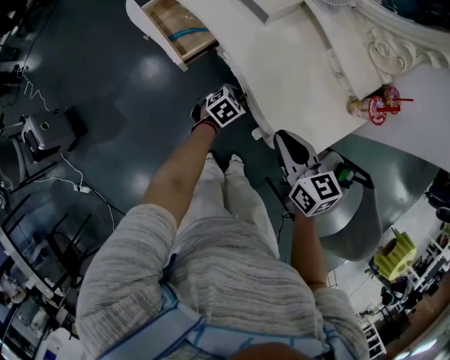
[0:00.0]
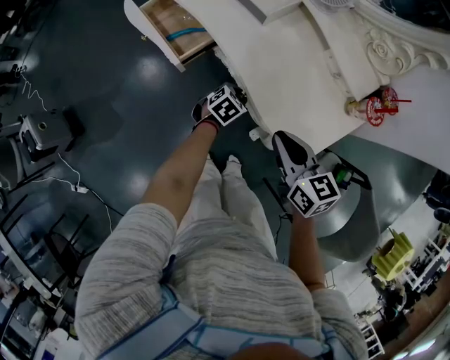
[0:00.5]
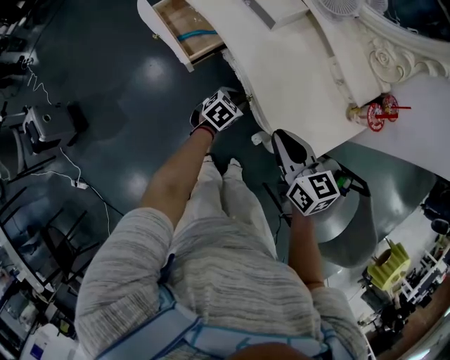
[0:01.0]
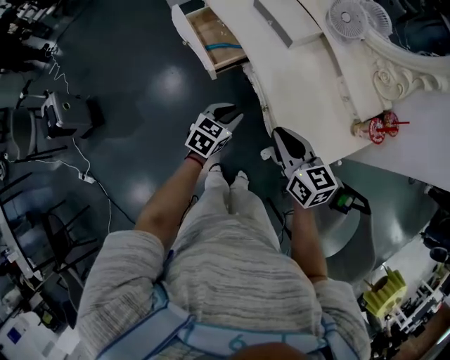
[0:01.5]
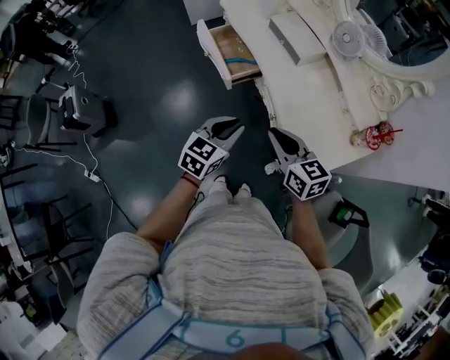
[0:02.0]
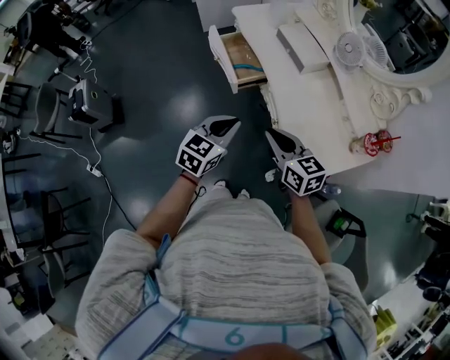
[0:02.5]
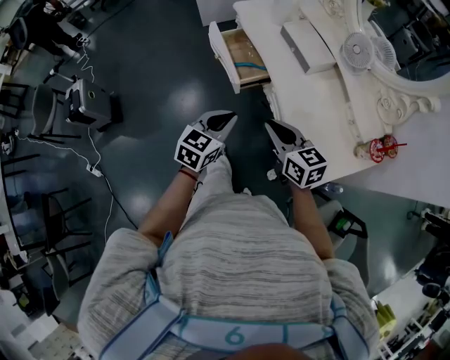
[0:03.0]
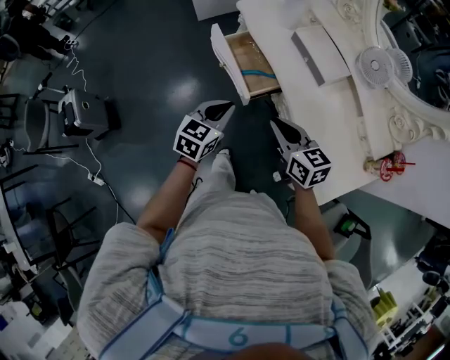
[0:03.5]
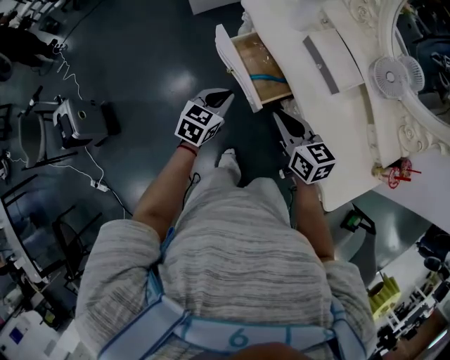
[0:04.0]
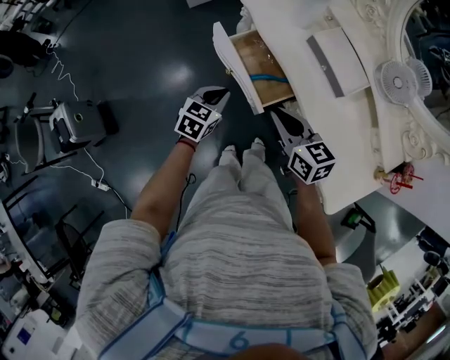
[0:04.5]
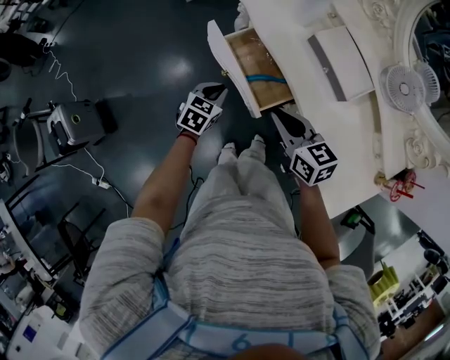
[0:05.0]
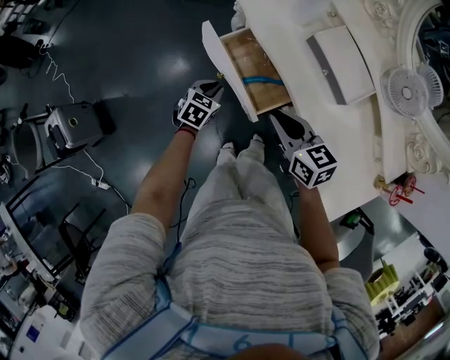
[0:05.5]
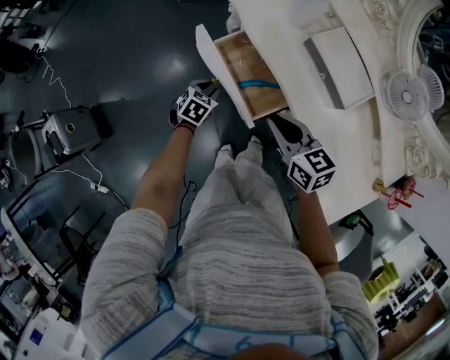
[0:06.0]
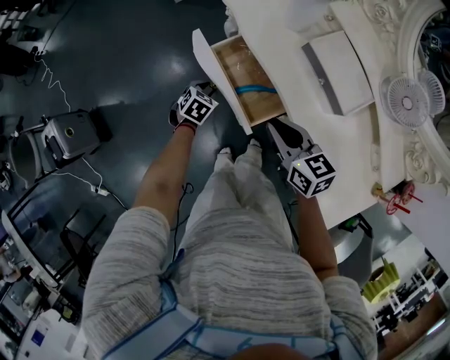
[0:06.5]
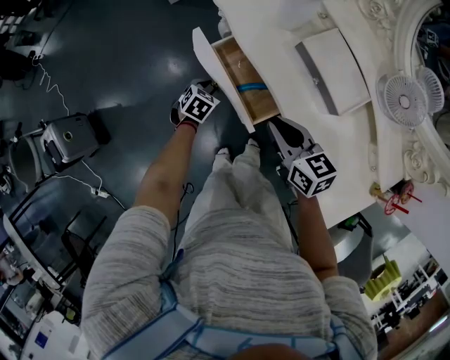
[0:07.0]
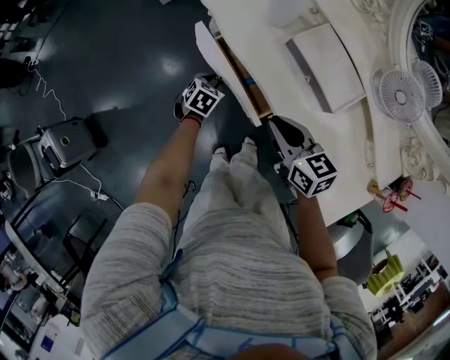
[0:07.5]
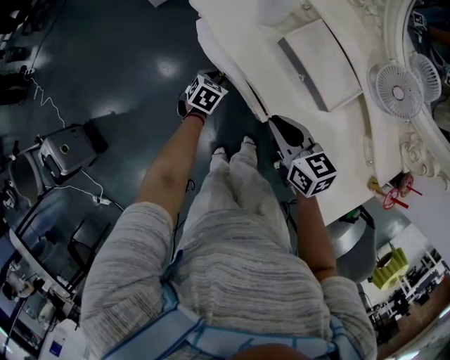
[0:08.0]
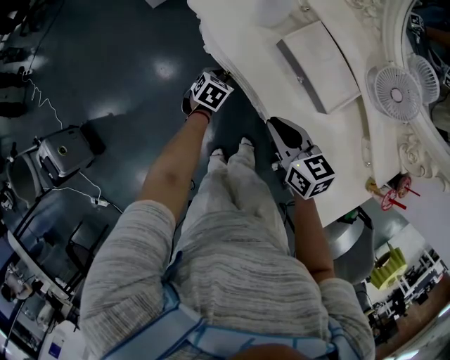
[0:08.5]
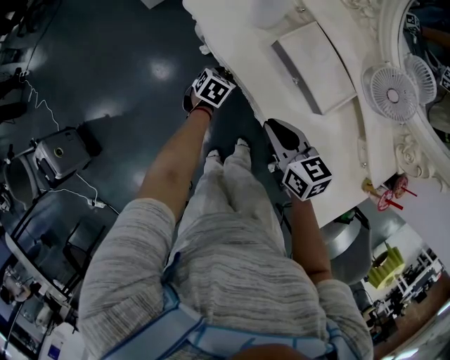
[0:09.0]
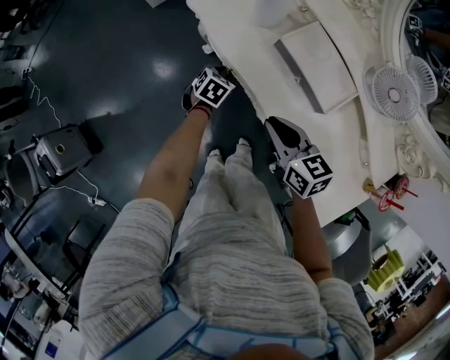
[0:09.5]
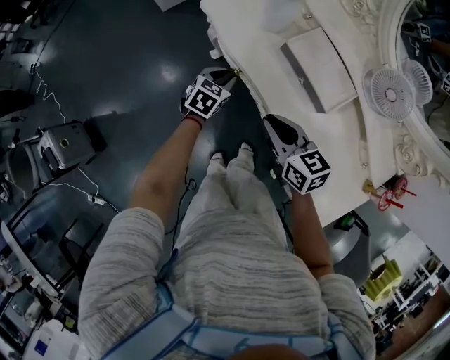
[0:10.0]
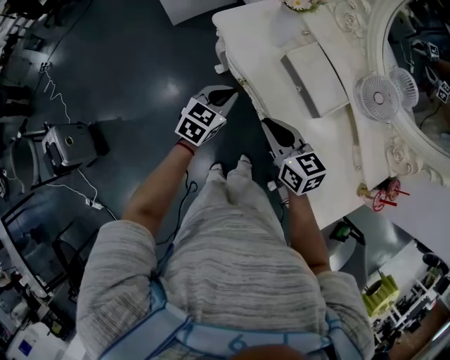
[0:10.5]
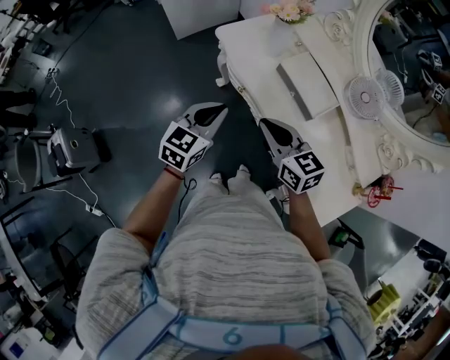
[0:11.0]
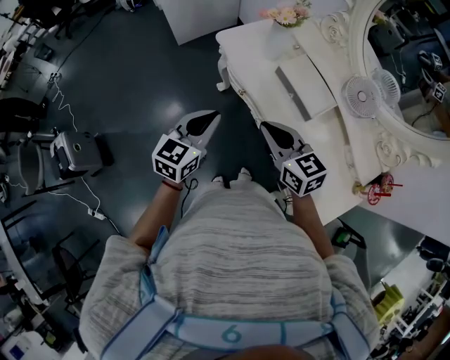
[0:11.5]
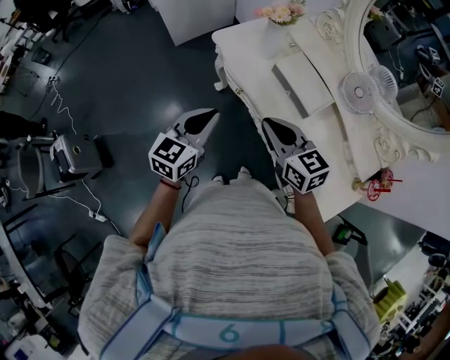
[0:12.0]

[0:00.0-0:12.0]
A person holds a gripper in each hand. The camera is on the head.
0:00.0 to 0:02.0: The right gripper travels to the left and upward by approximately 10 cm. The left gripper goes about 30 cm upward and backward, and turns by roughly 40 degrees.
0:02.0 to 0:04.0: Both grippers travel together forward and to the left, approximately 30 cm.
0:04.0 to 0:06.0: The right gripper is displaced forward and downward by about 10 cm. The left gripper moves downward and forward, some 25 cm, rotates about 30 degrees, and opens.
0:06.0 to 0:08.0: The right gripper heads to the right, covering about 5 cm. Meanwhile the left gripper travels to the right and forward by roughly 15 cm.
0:08.0 to 0:10.0: The left gripper moves upward, about 10 cm.
0:10.0 to 0:12.0: The right gripper is displaced upward by about 15 cm. The left gripper shifts roughly 30 cm upward and backward, rotates about 30 degrees, and closes its fingers.

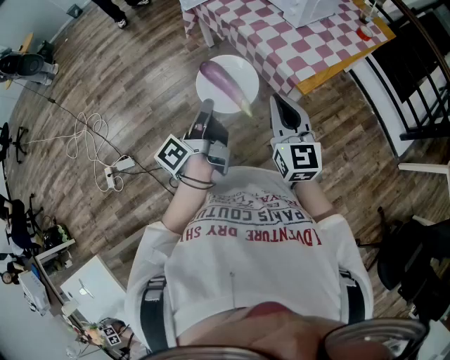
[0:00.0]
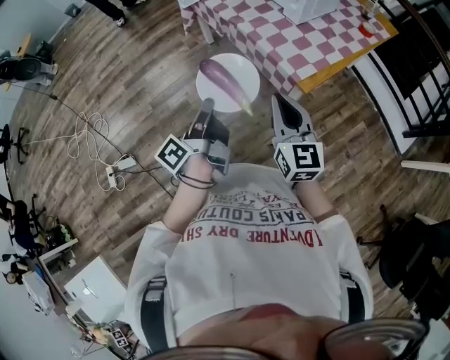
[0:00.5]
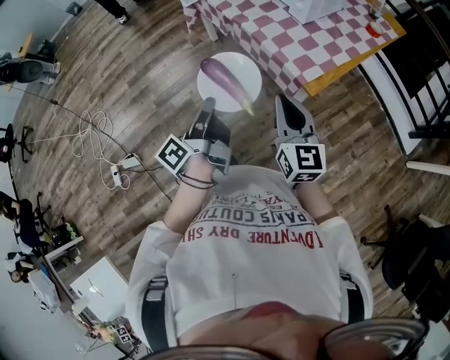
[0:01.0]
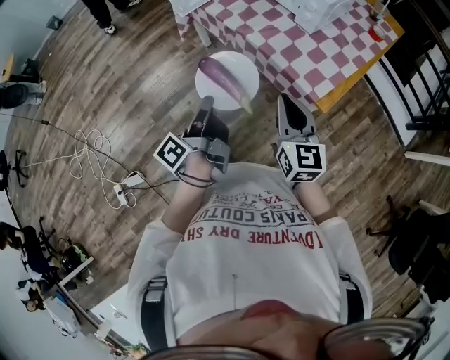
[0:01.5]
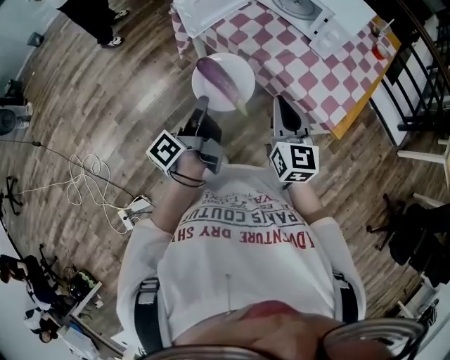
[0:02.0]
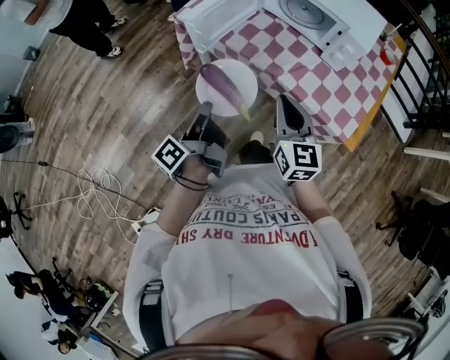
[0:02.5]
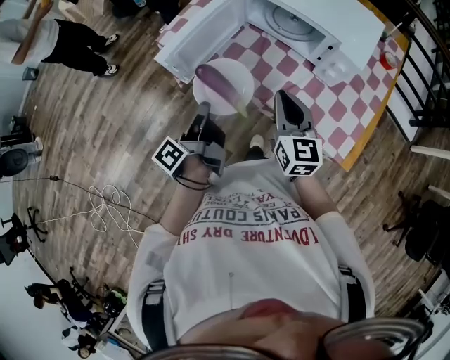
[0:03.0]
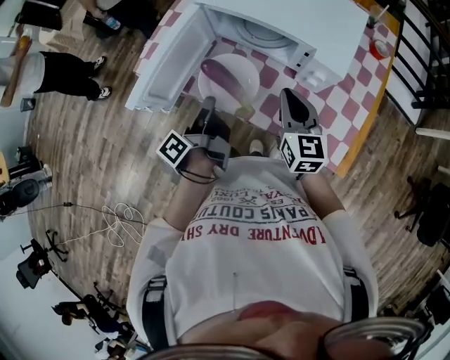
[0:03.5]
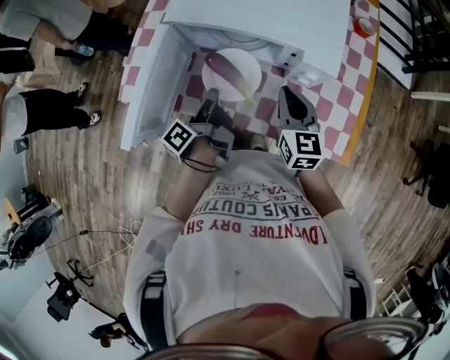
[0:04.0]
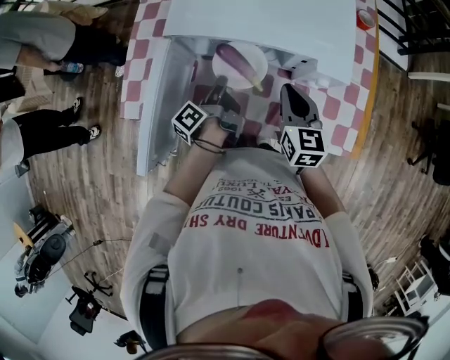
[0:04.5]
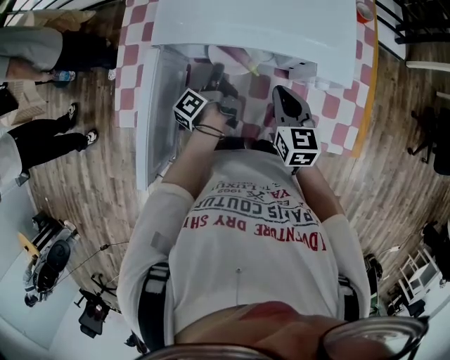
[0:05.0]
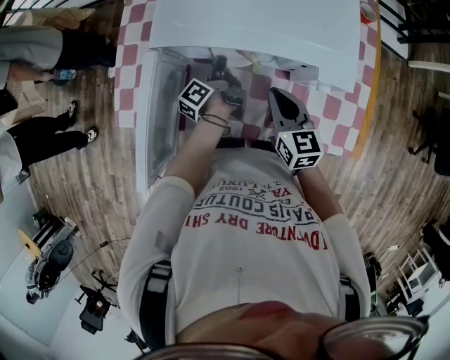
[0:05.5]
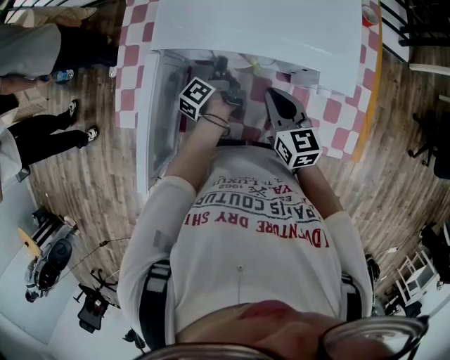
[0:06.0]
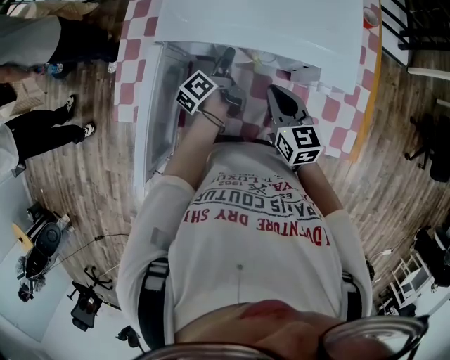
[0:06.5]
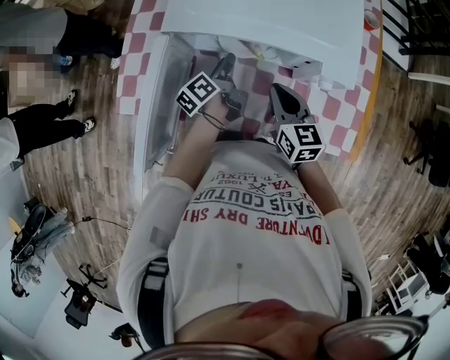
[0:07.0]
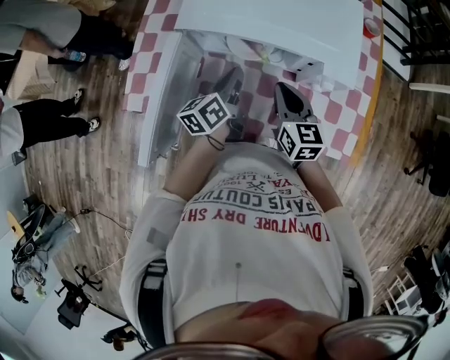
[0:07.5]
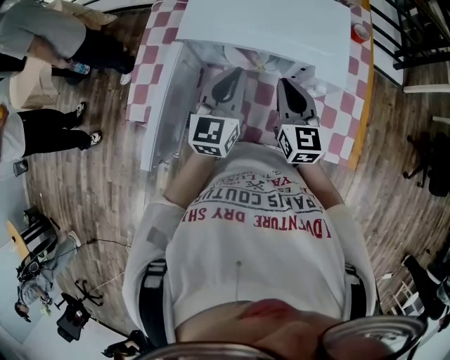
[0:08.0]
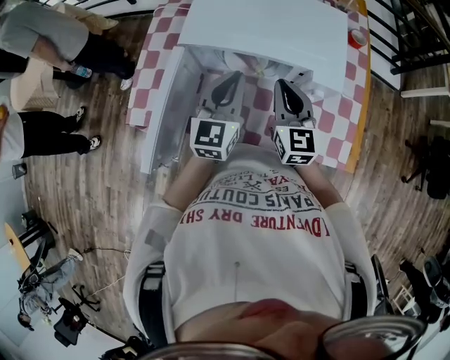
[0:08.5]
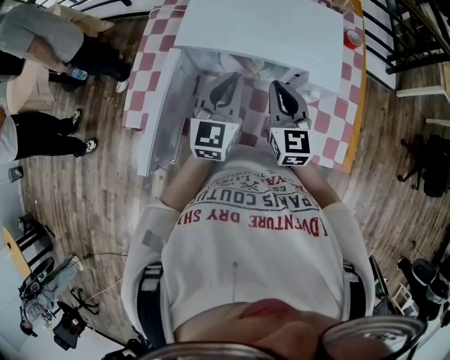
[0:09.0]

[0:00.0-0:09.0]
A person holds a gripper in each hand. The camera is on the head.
0:00.0 to 0:02.0: The right gripper changes place by some 30 cm.
0:02.0 to 0:04.5: The right gripper ends up approximately 40 cm from where it was, and changes its angle by some 30 degrees.
0:07.0 to 0:09.0: The right gripper goes about 10 cm upward, and changes its angle by approximately 20 degrees.

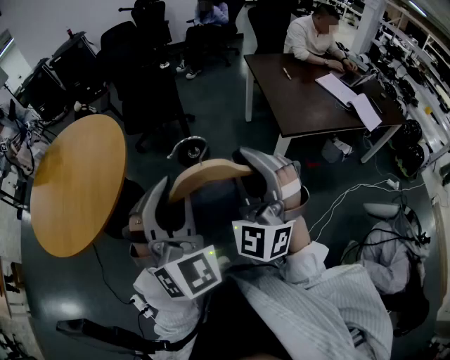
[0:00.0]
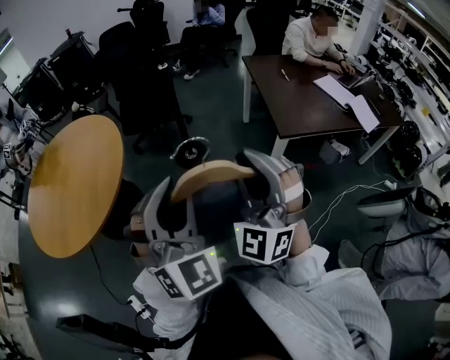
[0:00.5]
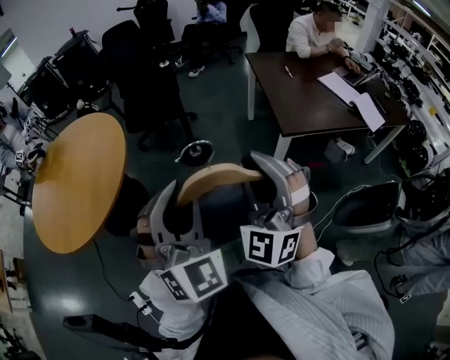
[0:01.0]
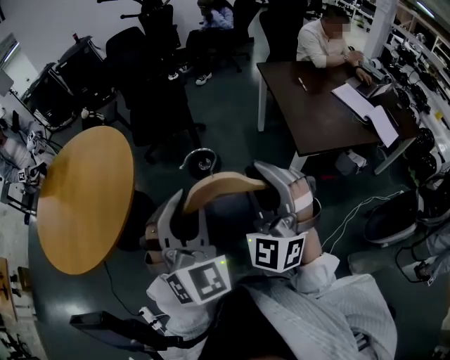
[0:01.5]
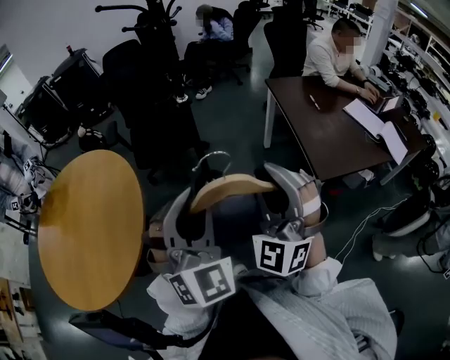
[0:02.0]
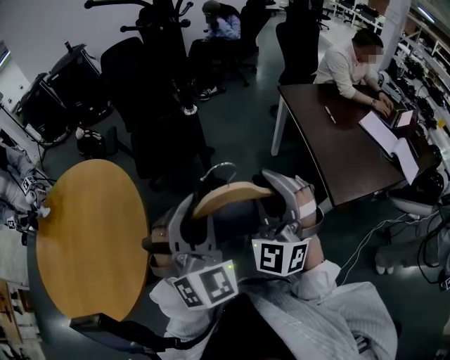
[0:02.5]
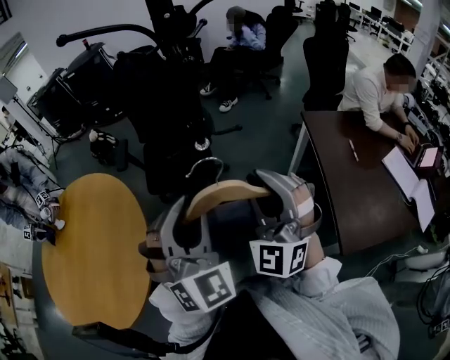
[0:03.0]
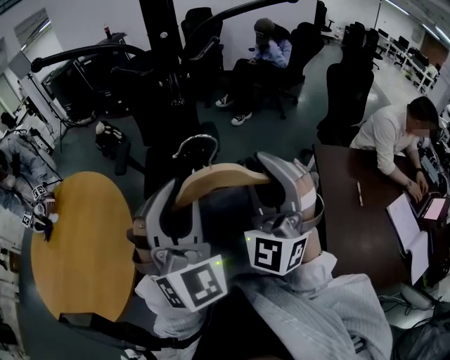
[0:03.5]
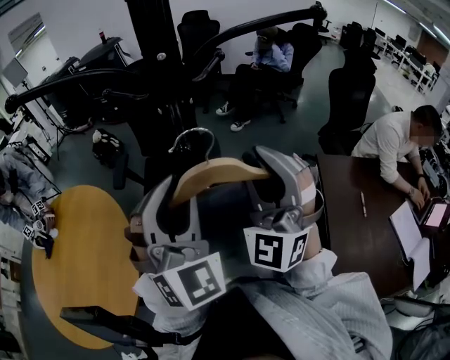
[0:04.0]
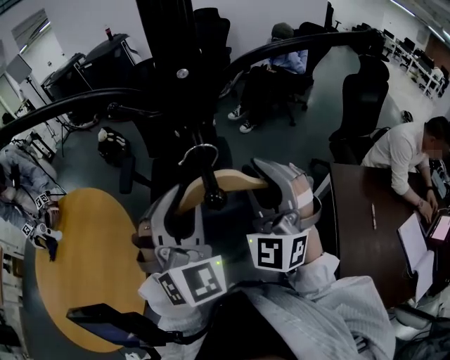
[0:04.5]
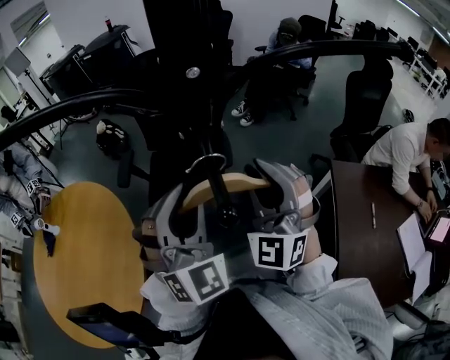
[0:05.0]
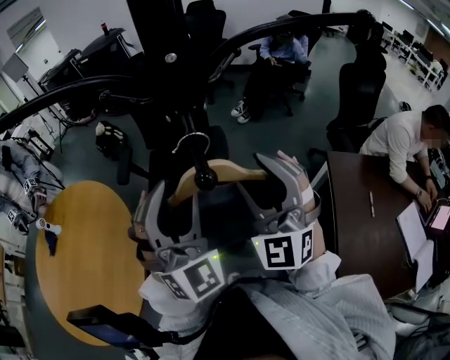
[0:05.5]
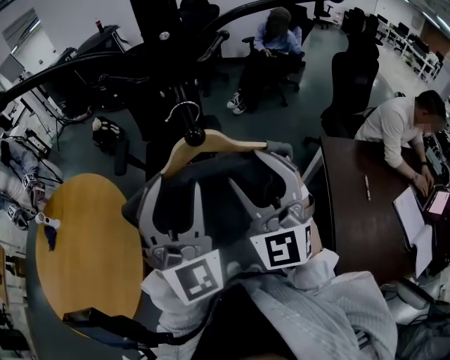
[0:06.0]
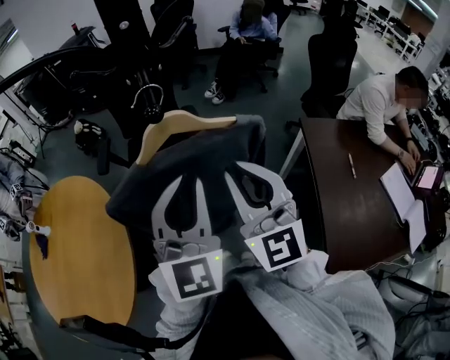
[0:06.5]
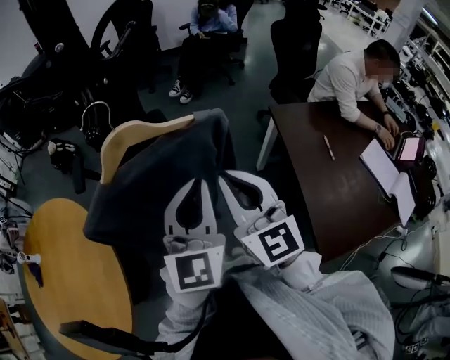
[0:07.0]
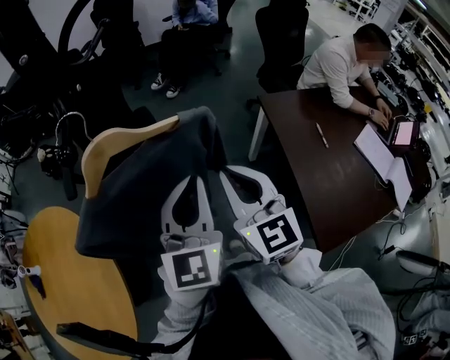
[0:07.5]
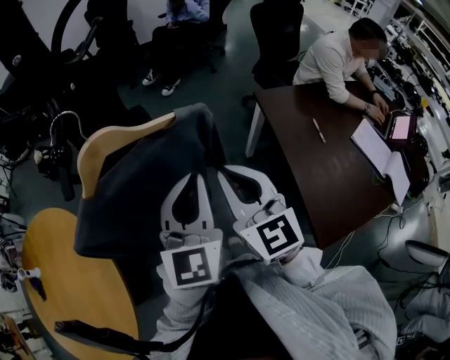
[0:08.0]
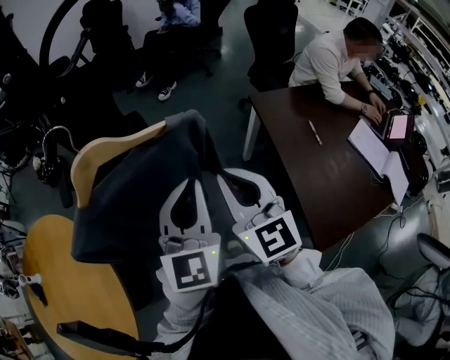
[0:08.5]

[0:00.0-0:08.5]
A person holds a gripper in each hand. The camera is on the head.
0:00.0 to 0:02.0: The two grippers go about 25 cm forward.
0:02.0 to 0:04.0: The two grippers travel together, forward, some 50 cm. The right gripper turns by about 20 degrees.
0:04.0 to 0:06.5: The right gripper shifts roughly 10 cm downward and backward, twists approximately 40 degrees clockwise, seen from behind, and opens and closes again. Meanwhile the left gripper is displaced downward by some 5 cm, changes its angle by roughly 30 degrees, and opens, then closes again.
0:06.5 to 0:08.5: Both grippers move to the right and downward, some 15 cm. The right gripper changes its angle by about 20 degrees. The left gripper swivels approximately 20 degrees.
